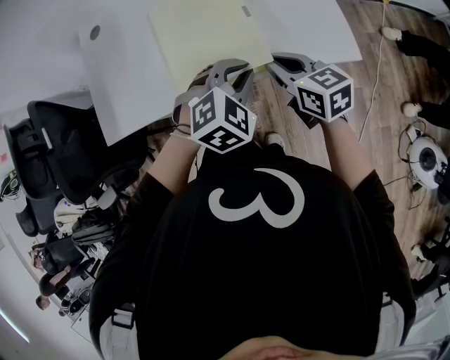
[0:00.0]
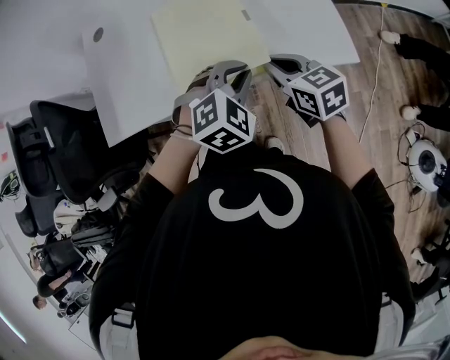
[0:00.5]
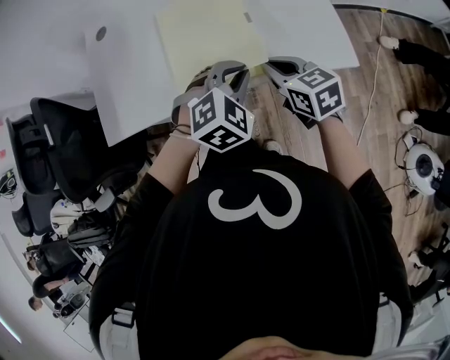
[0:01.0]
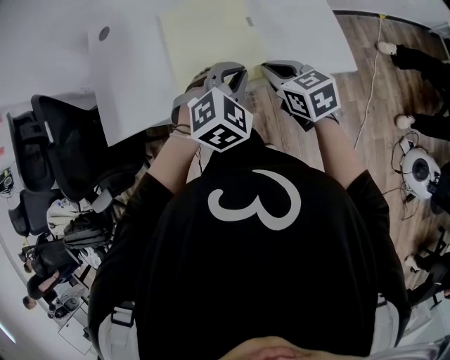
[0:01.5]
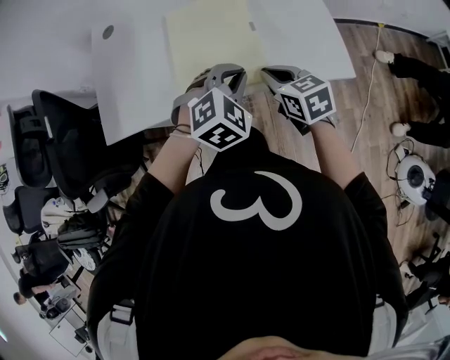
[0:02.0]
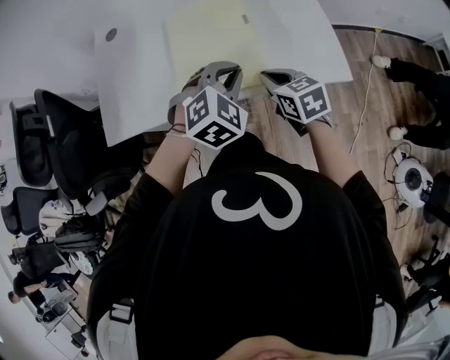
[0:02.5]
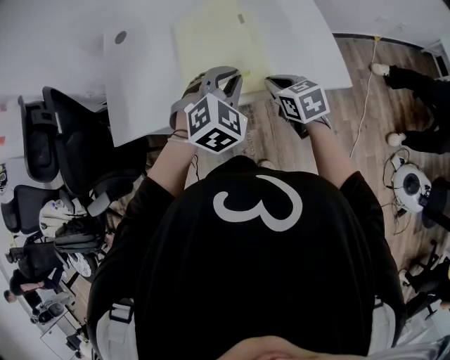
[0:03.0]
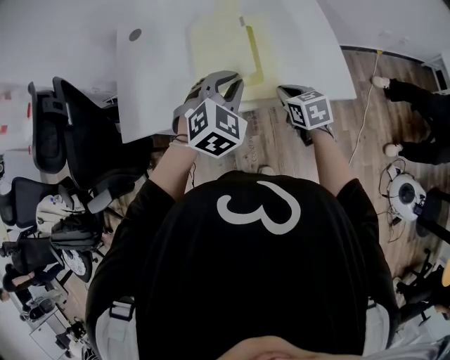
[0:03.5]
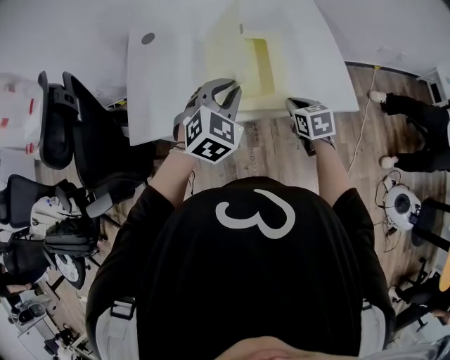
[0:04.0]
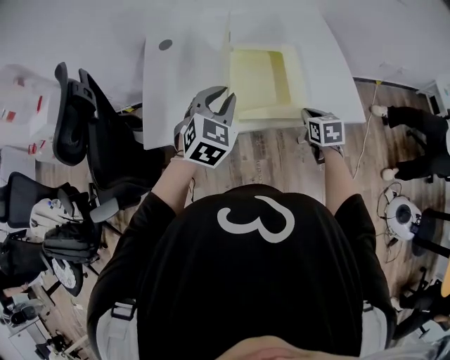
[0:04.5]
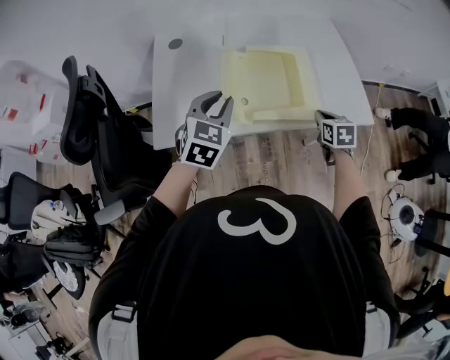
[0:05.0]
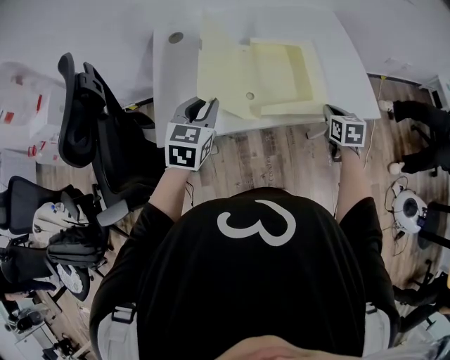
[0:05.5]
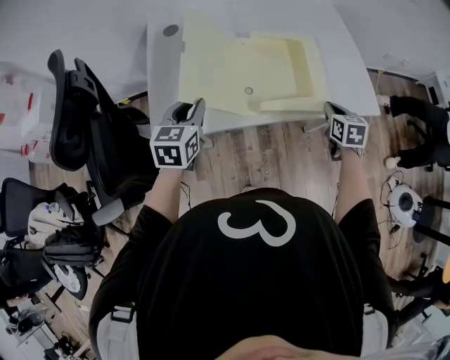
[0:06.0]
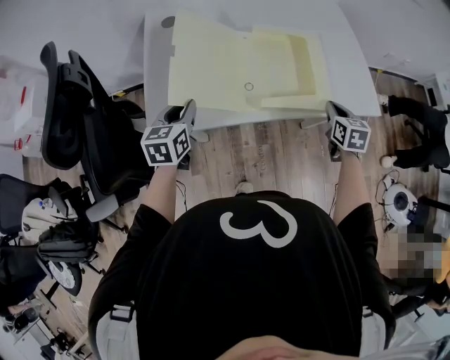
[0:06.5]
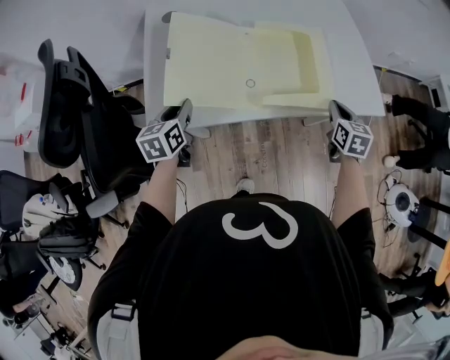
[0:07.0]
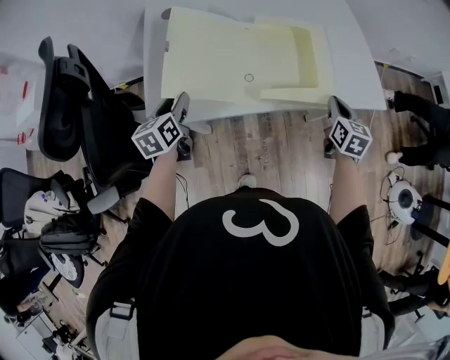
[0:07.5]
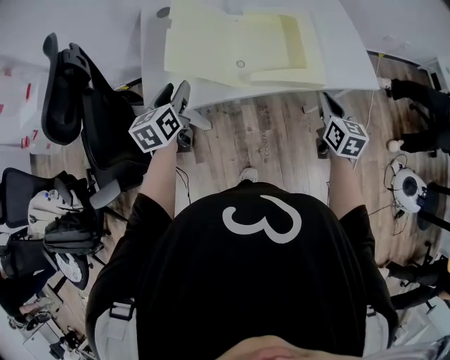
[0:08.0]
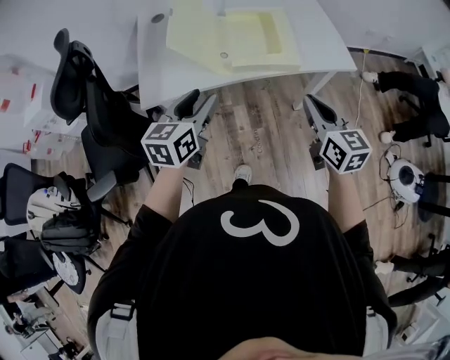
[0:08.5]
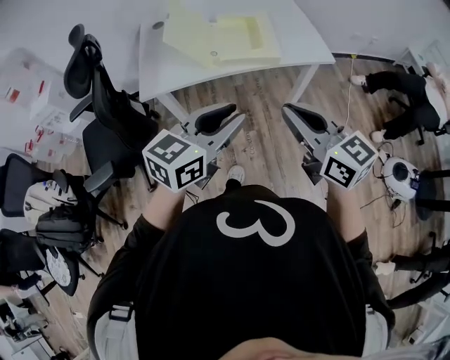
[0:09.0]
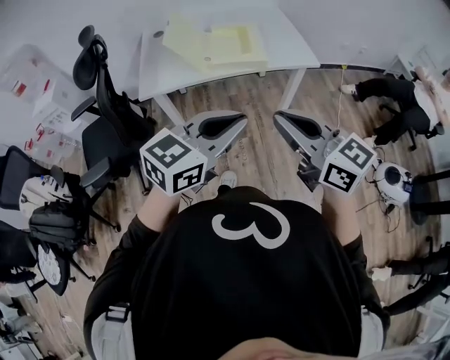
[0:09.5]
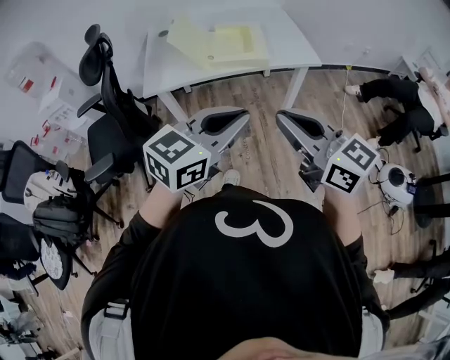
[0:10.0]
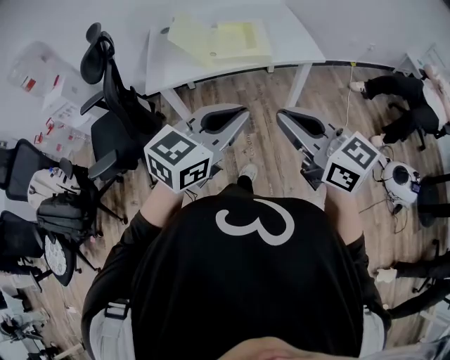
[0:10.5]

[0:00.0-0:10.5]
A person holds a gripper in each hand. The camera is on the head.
0:00.0 to 0:02.0: The grippers stay close to where they were, moving slightly.
0:02.0 to 0:04.0: The left gripper shifts about 15 cm to the left and upward.
0:04.0 to 0:06.5: The left gripper goes roughly 30 cm to the left, and rolls counterclockwise, seen from behind, by some 50 degrees.
0:06.5 to 0:08.5: The right gripper goes approximately 25 cm backward and upward, and rotates roughly 30 degrees. The left gripper is displaced backward, to the right and upward by some 25 cm, and opens up.
0:08.5 to 0:10.5: The left gripper moves backward, to the right and upward, roughly 35 cm, rotates roughly 30 degrees, and closes, while the right gripper goes roughly 30 cm backward and upward, and rotates some 30 degrees.

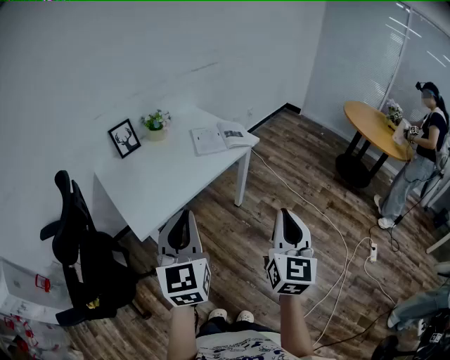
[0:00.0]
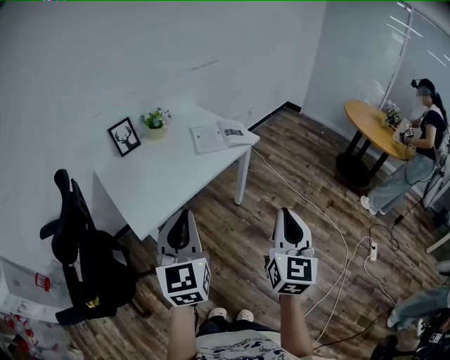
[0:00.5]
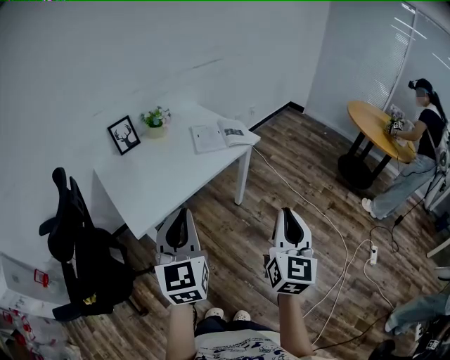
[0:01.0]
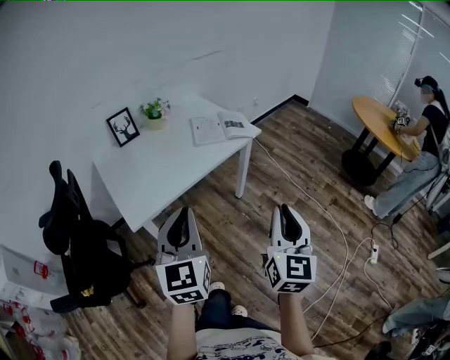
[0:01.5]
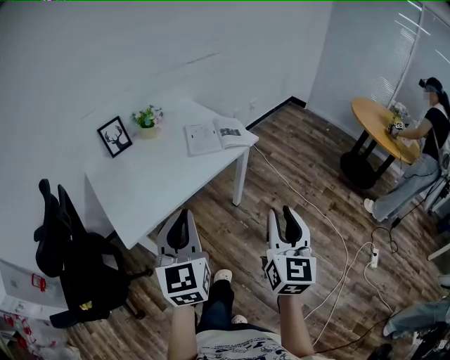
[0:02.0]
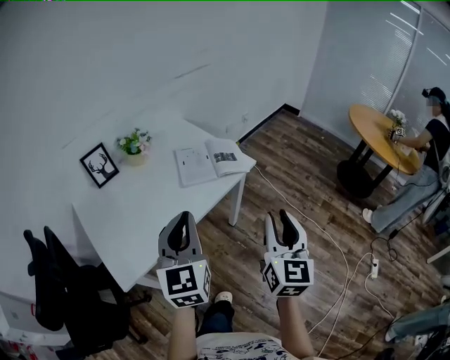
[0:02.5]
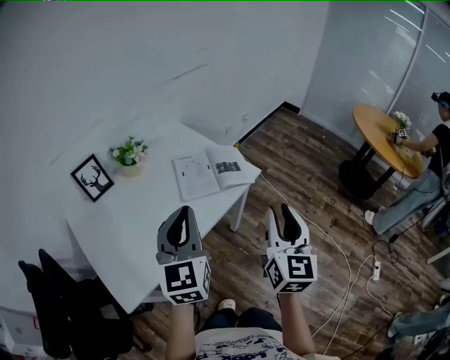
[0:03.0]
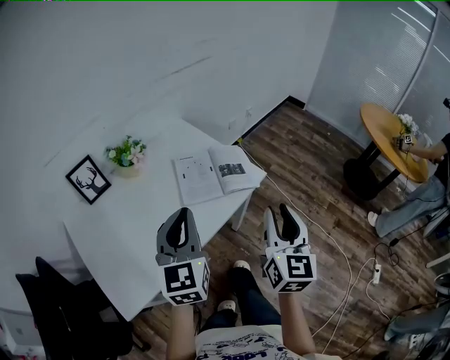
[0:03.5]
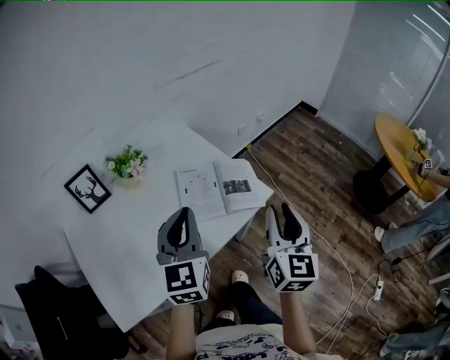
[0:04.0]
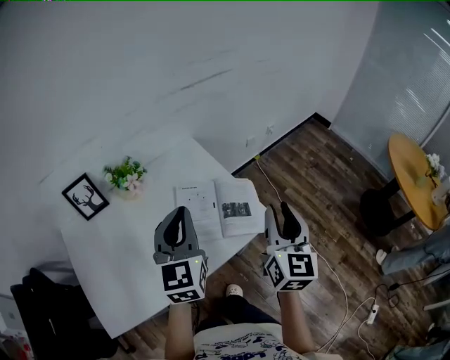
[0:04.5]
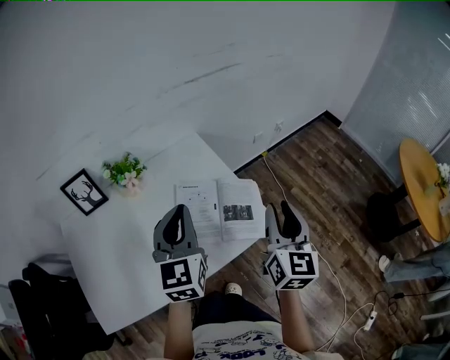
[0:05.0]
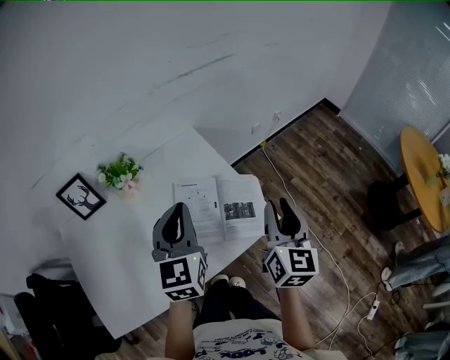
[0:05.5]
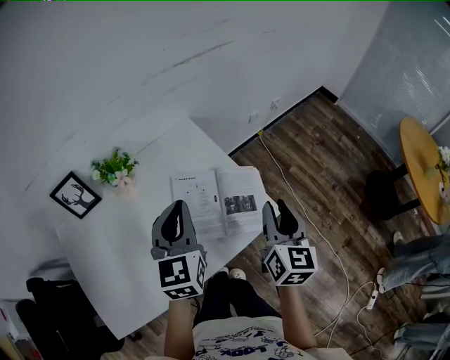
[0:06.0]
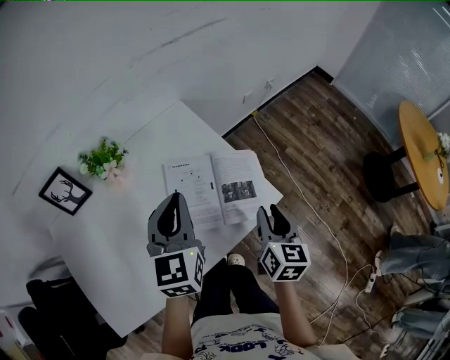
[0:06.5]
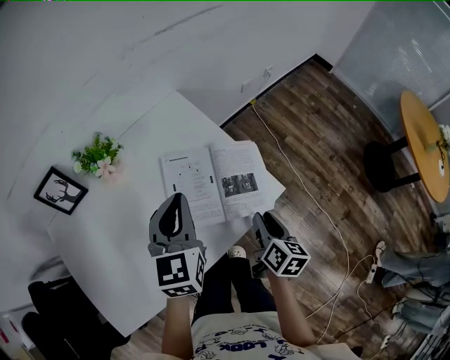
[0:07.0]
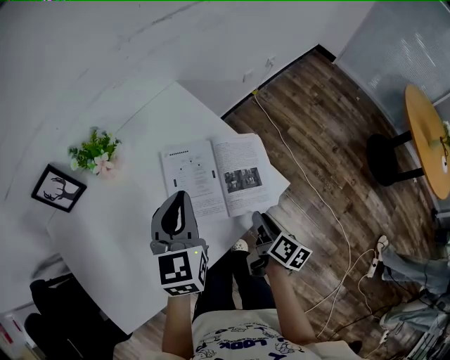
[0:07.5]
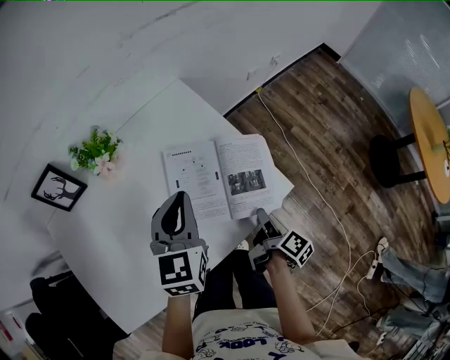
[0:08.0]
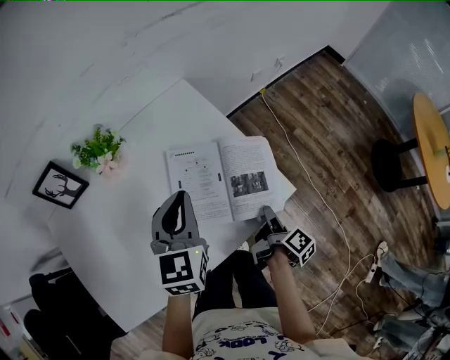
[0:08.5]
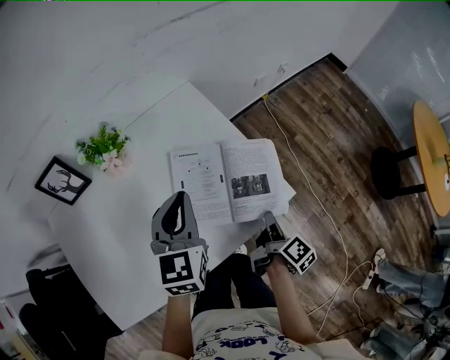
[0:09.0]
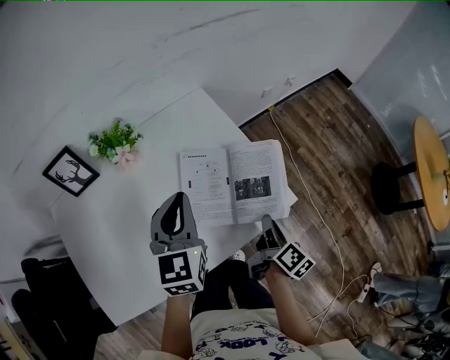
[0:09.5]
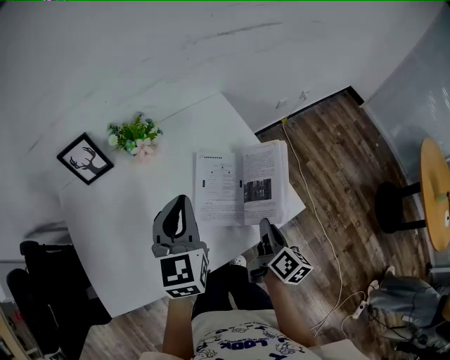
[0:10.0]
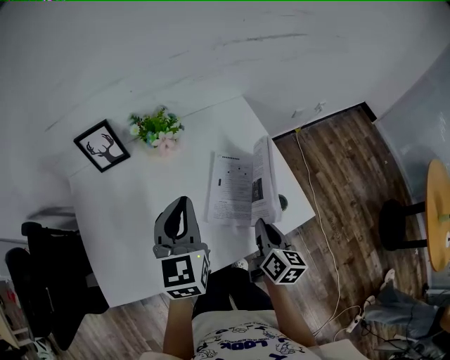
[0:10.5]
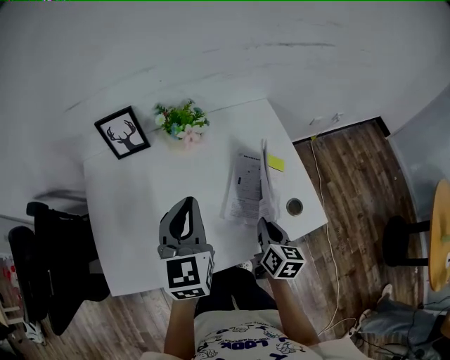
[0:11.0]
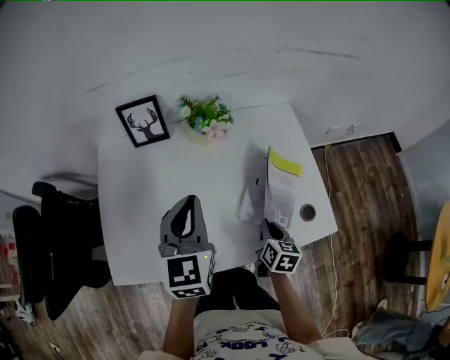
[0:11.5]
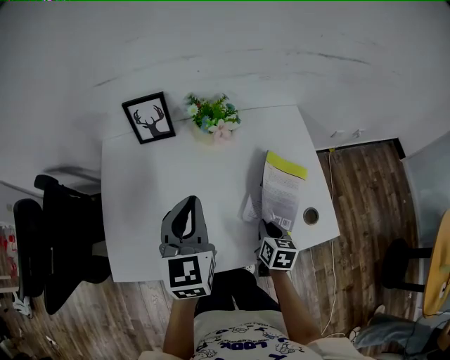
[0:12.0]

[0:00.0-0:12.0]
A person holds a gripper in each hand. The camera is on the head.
0:00.0 to 0:02.0: Both grippers travel together forward, approximately 10 cm.
0:02.0 to 0:04.0: The two grippers travel together, forward, roughly 40 cm.
0:04.0 to 0:06.0: The right gripper moves forward and downward, roughly 20 cm, while the left gripper goes about 15 cm forward.
0:06.0 to 0:08.0: The right gripper travels downward by some 25 cm, and twists about 60 degrees clockwise, seen from behind. The left gripper goes roughly 10 cm downward.
0:08.0 to 0:10.0: The left gripper moves to the left, some 5 cm. Meanwhile the right gripper heads upward and to the left, covering some 10 cm, swivels roughly 30 degrees, and closes up.
0:10.0 to 0:12.0: The left gripper heads to the left, covering approximately 15 cm. The right gripper moves to the left and downward, approximately 15 cm, and rotates about 50 degrees.

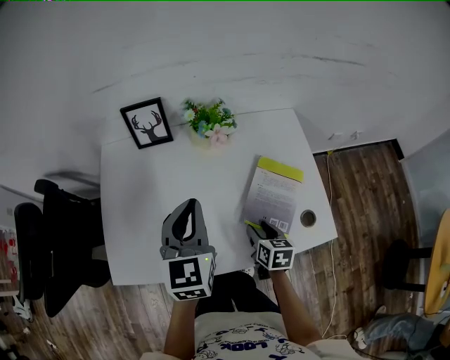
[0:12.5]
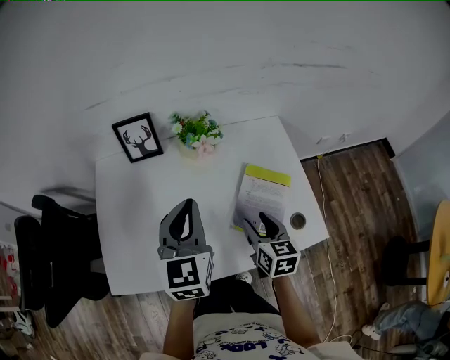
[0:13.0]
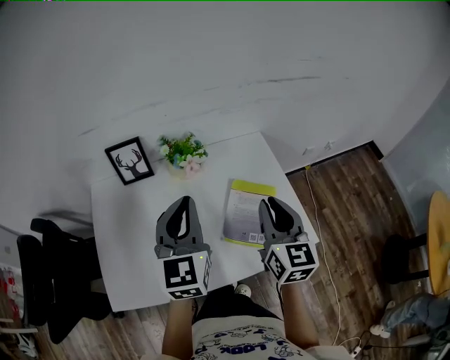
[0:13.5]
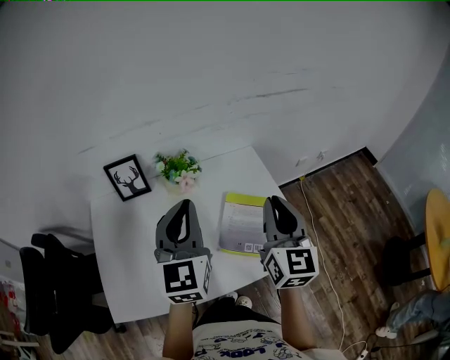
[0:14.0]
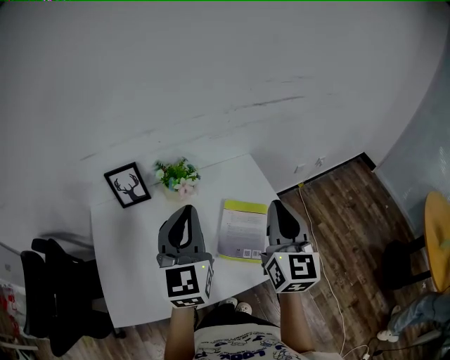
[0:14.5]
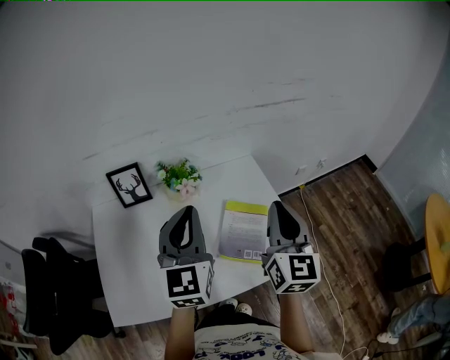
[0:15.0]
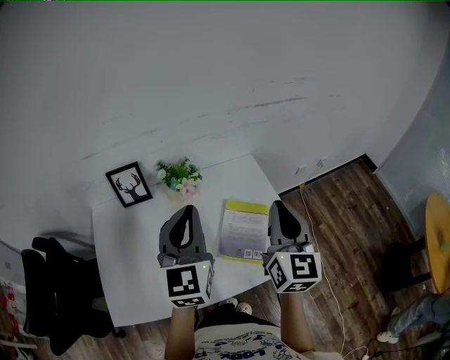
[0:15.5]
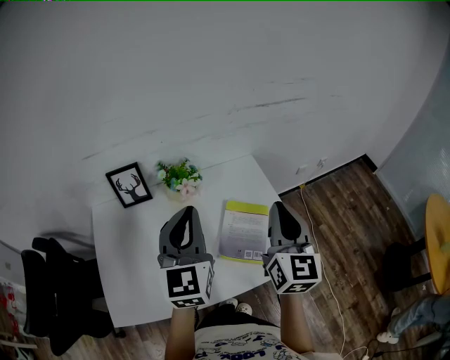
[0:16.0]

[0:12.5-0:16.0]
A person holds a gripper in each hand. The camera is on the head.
0:12.5 to 0:14.5: The left gripper is displaced upward and to the right by about 15 cm; the right gripper moves upward, approximately 35 cm, tips its fingers upward by about 50 degrees, and closes.
0:14.5 to 0:16.0: Both grippers stay put.

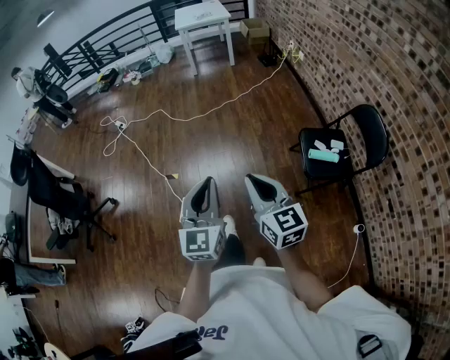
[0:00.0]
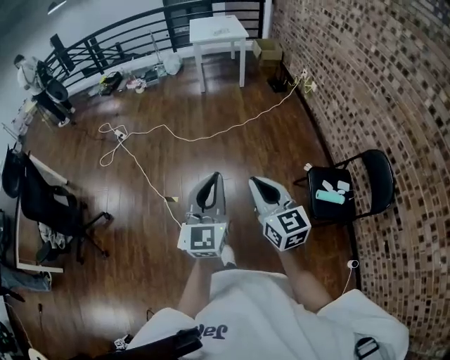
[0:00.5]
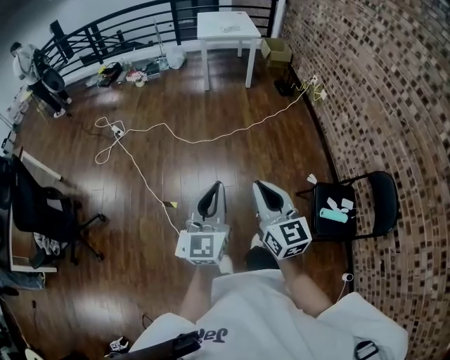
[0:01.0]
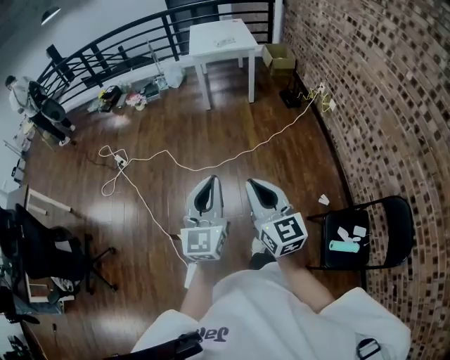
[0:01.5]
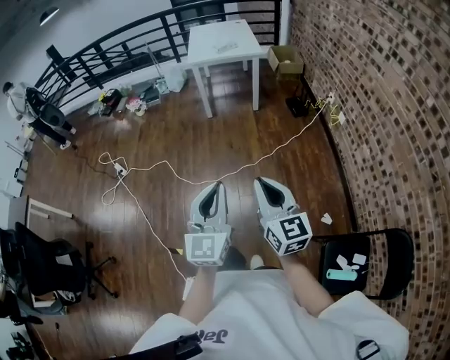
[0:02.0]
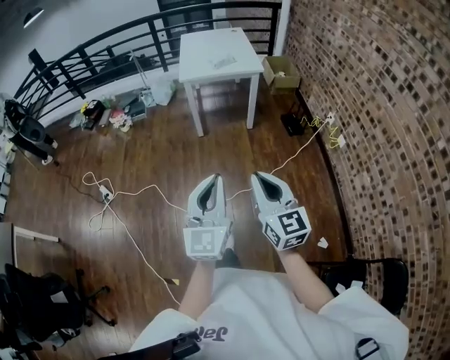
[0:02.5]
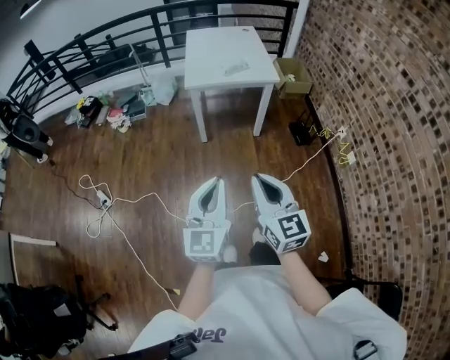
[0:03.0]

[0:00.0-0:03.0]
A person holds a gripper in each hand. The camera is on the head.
0:00.0 to 0:01.5: The two grippers travel together, forward, roughly 50 cm.
0:01.5 to 0:03.0: The two grippers travel together, forward, roughly 60 cm.
